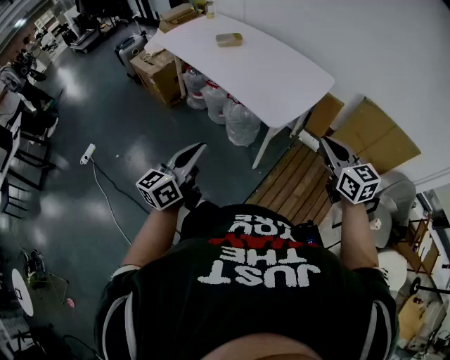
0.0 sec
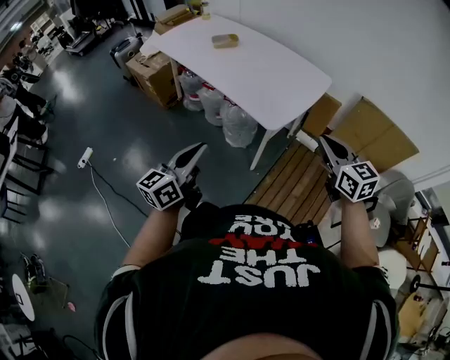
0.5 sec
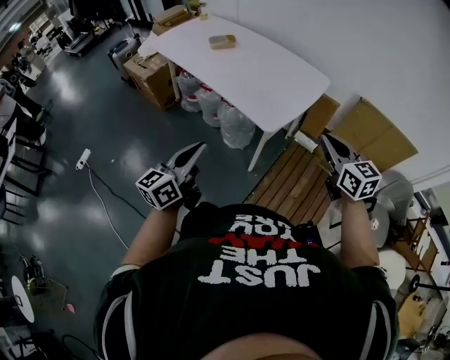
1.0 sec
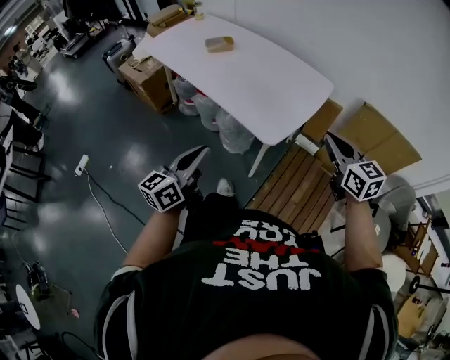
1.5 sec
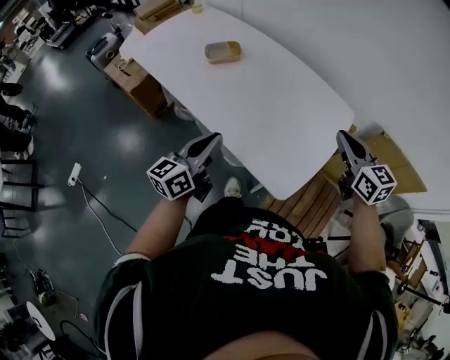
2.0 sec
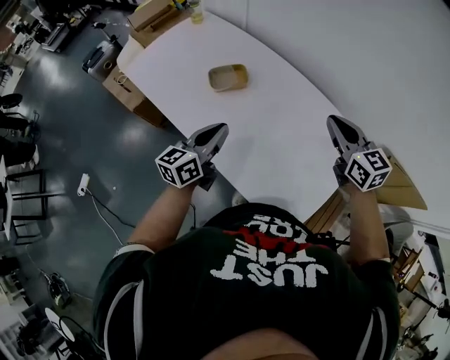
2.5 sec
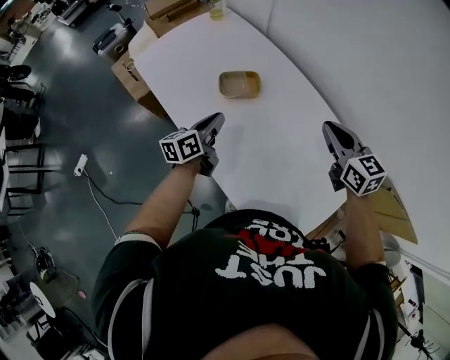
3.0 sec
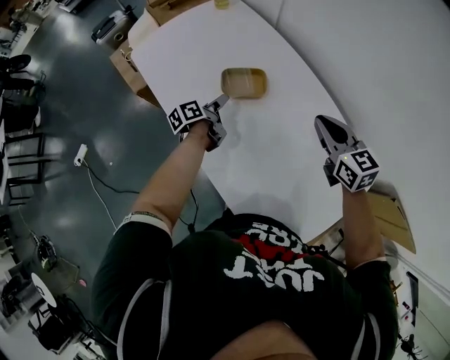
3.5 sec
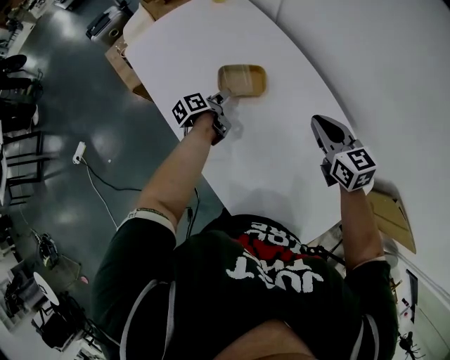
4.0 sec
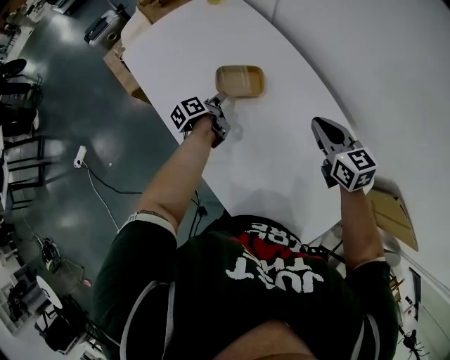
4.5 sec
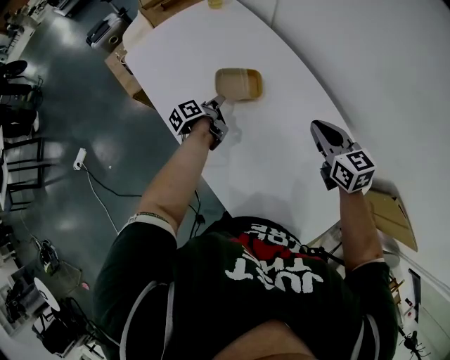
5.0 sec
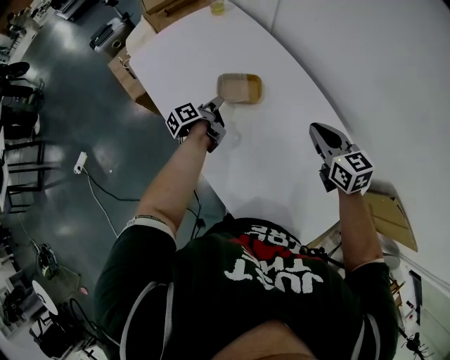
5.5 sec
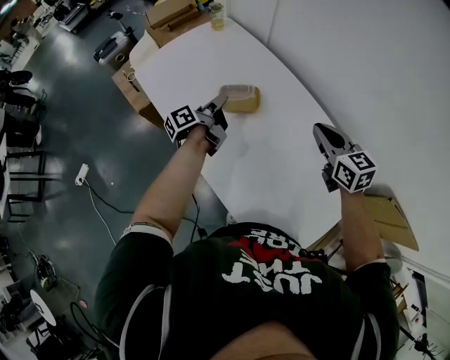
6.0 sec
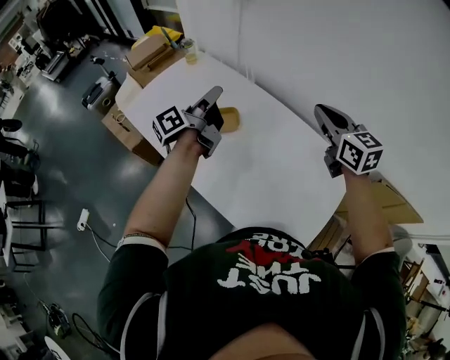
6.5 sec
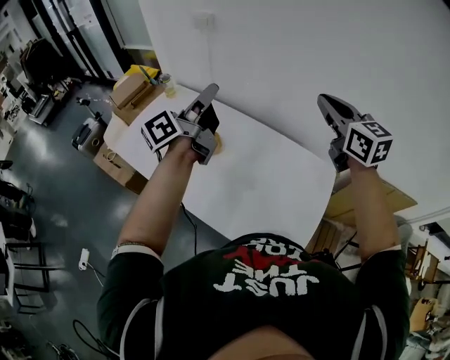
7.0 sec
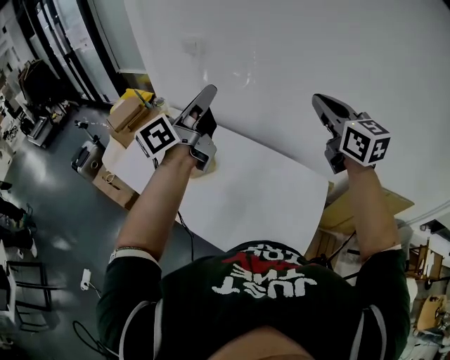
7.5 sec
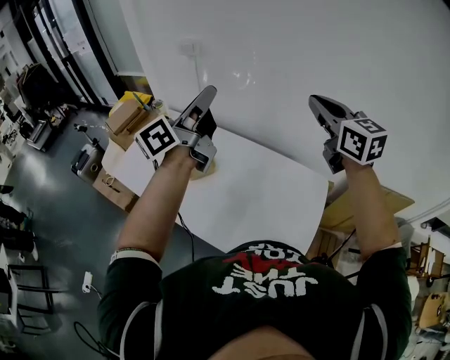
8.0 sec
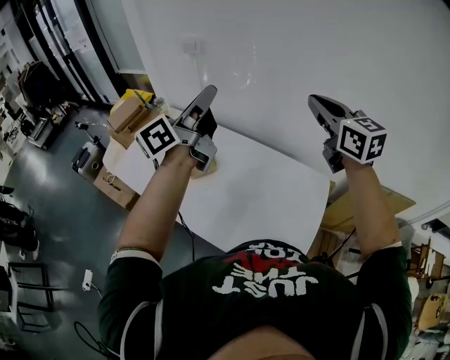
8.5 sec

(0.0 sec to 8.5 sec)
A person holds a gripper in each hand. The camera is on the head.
0.0 sec - 2.0 sec: Both grippers move forward, roughly 35 cm.
2.0 sec - 4.0 sec: The right gripper goes approximately 35 cm forward, and rotates about 20 degrees, while the left gripper goes some 50 cm forward and downward, rolls counterclockwise, seen from behind, by approximately 50 degrees, and opens its fingers.
4.0 sec - 6.5 sec: The right gripper is displaced upward by approximately 20 cm, and rotates some 20 degrees, while the left gripper shifts roughly 35 cm upward, points its fingers about 40 degrees further upward, and closes.
6.5 sec - 8.5 sec: Both grippers move upward and to the right, some 25 cm. The left gripper swivels approximately 30 degrees.

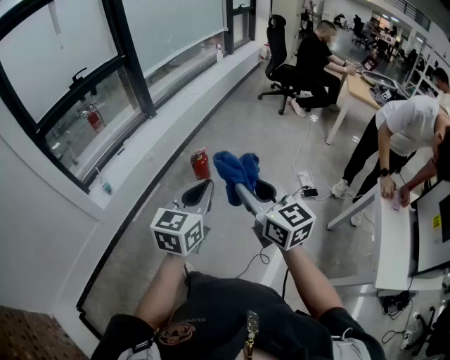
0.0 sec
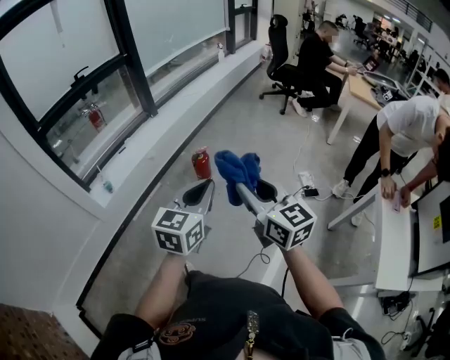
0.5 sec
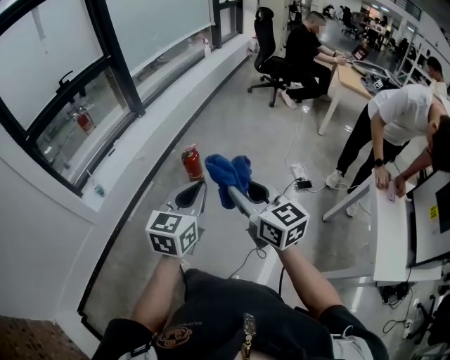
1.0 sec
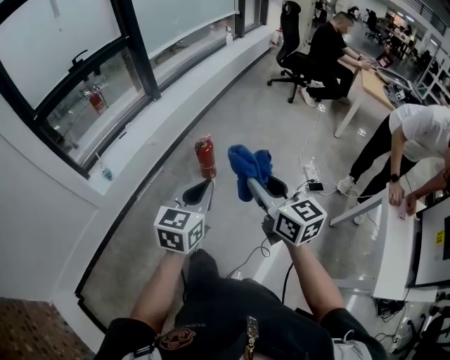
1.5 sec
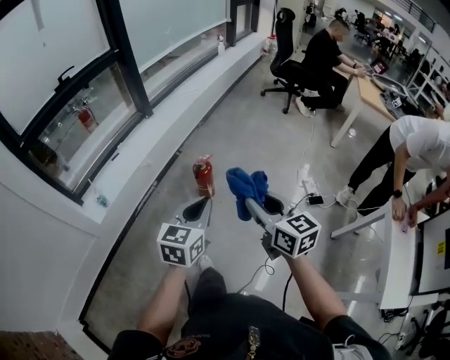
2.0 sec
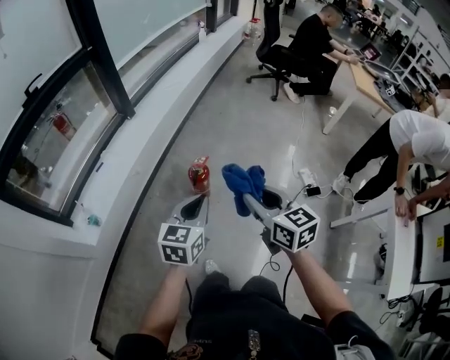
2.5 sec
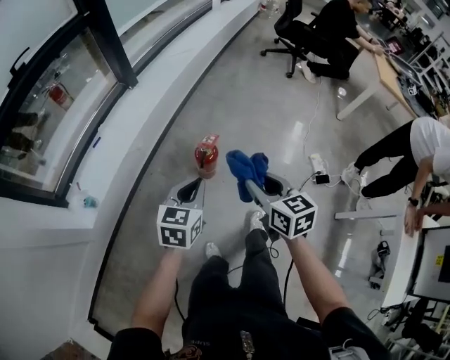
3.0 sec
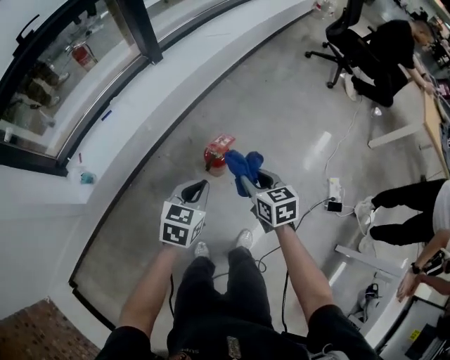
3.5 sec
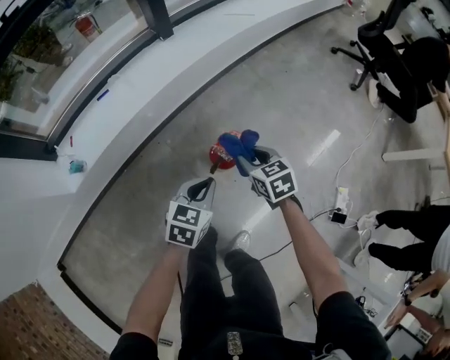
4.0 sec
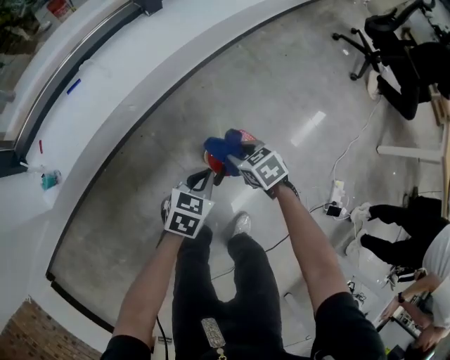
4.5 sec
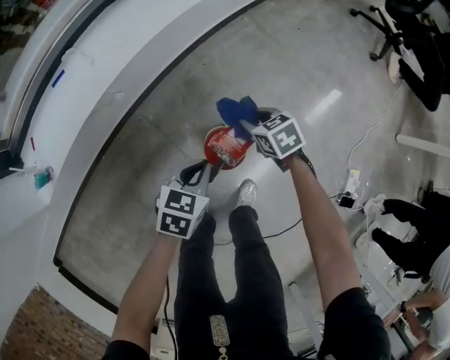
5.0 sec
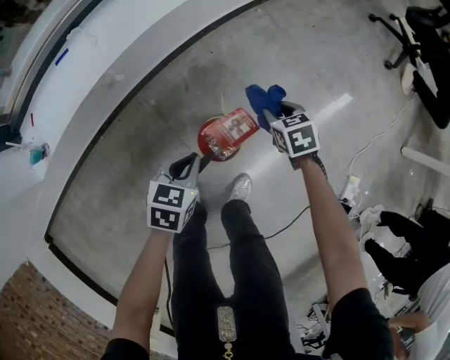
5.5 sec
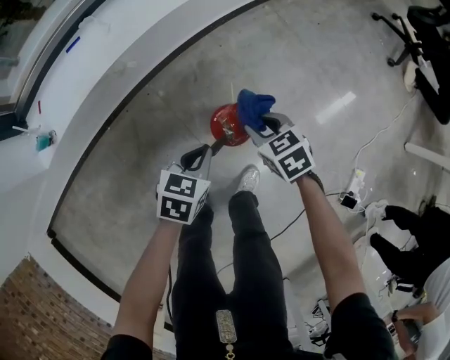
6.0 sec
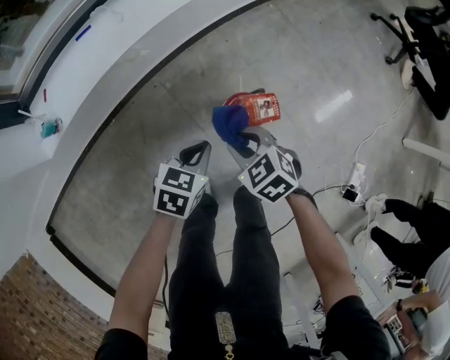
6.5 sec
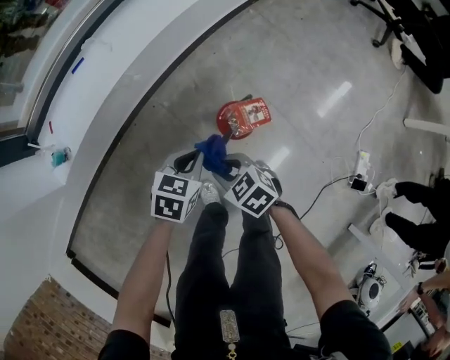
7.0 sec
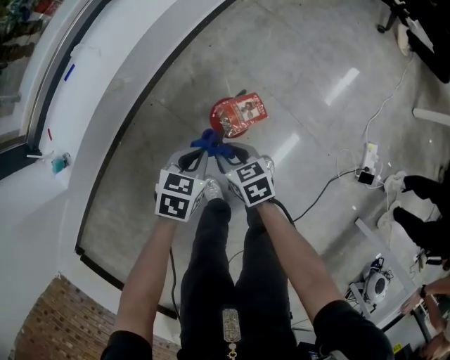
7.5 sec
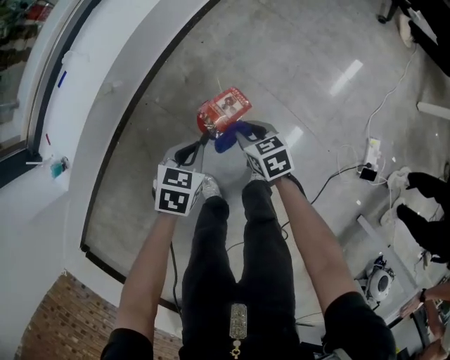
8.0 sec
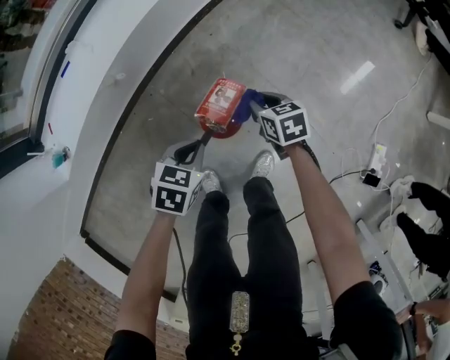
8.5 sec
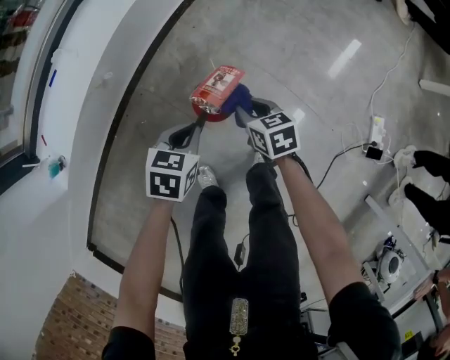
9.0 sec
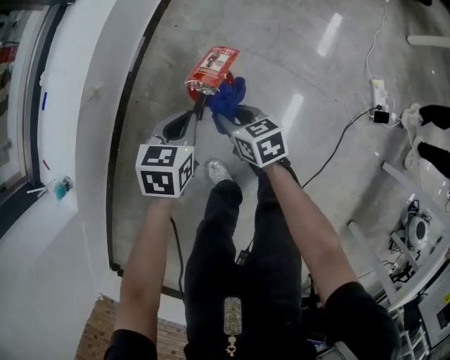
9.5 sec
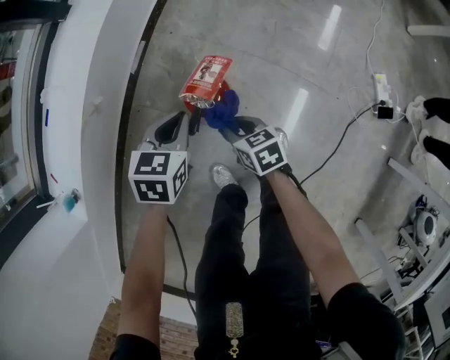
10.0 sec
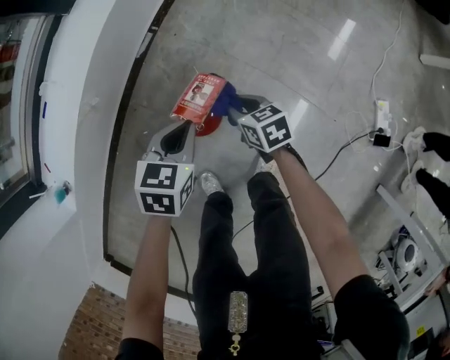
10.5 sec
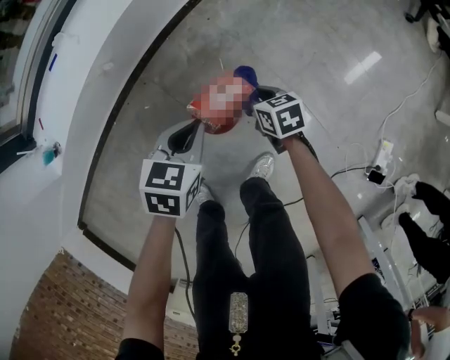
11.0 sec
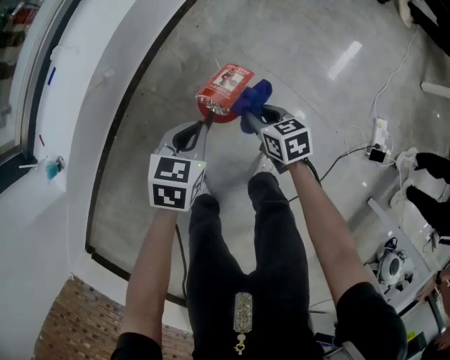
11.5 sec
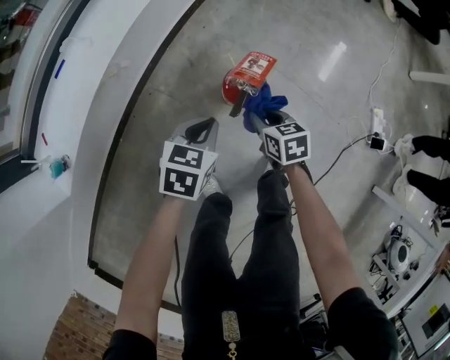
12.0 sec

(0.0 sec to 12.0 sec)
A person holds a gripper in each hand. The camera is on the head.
0.0 sec - 2.0 sec: The left gripper shifts some 15 cm forward, downward and to the left. Meanwhile the right gripper goes roughly 15 cm forward and downward.
2.0 sec - 4.0 sec: Both grippers move forward and downward, some 50 cm. The right gripper tilts its fingers roughly 30 degrees downward, while the left gripper changes its angle by approximately 20 degrees.
4.0 sec - 6.0 sec: The grippers both shift downward by approximately 15 cm.
6.0 sec - 8.0 sec: The right gripper goes to the left and returns, approximately 15 cm each way, and changes its angle by roughly 30 degrees.
8.0 sec - 10.0 sec: The right gripper goes approximately 5 cm backward.
10.0 sec - 12.0 sec: The left gripper is displaced to the left and backward by about 10 cm. Meanwhile the right gripper moves some 15 cm forward and comes back.

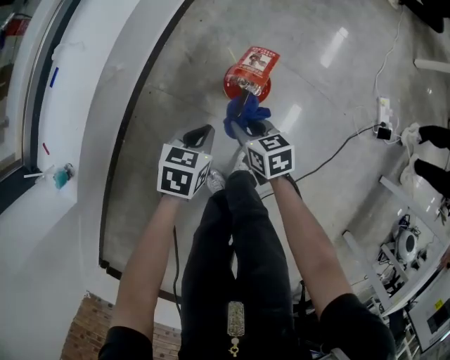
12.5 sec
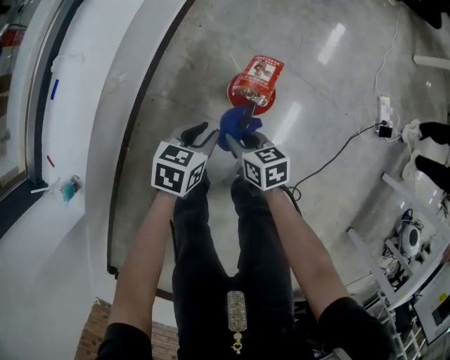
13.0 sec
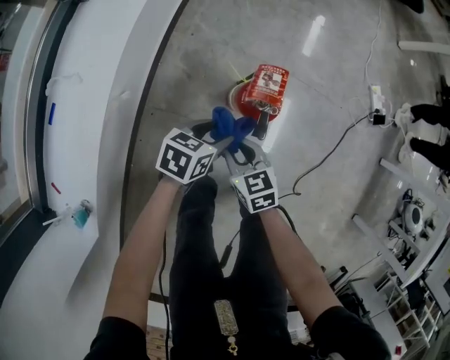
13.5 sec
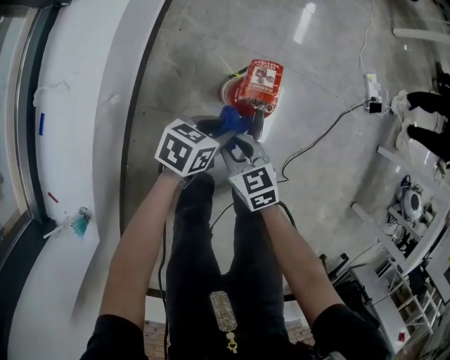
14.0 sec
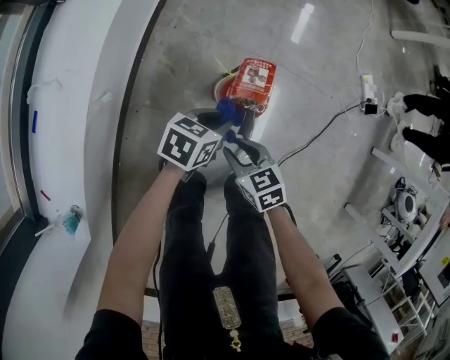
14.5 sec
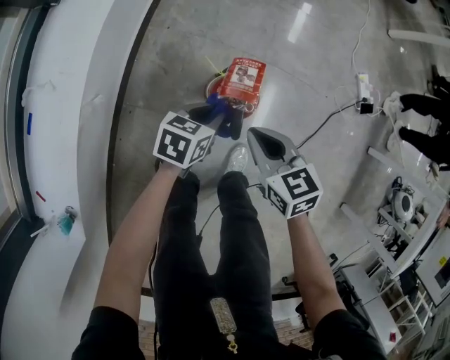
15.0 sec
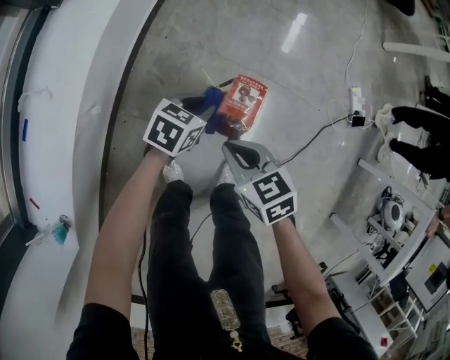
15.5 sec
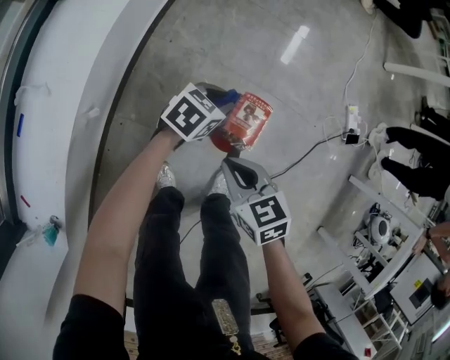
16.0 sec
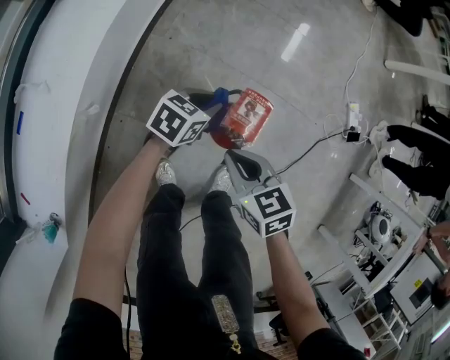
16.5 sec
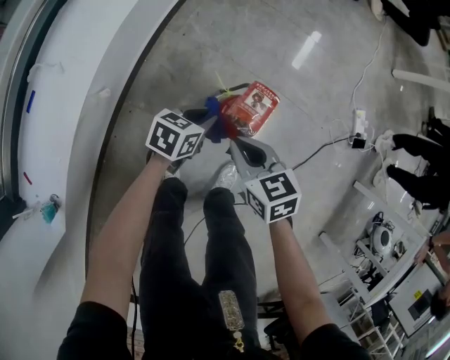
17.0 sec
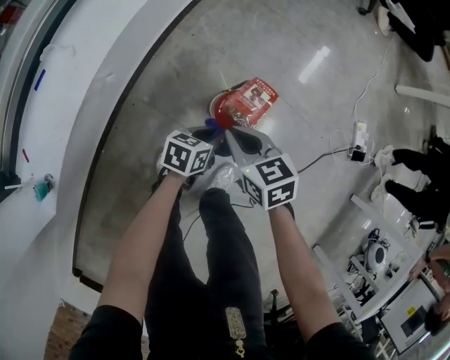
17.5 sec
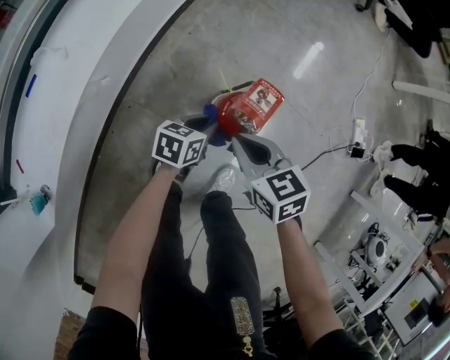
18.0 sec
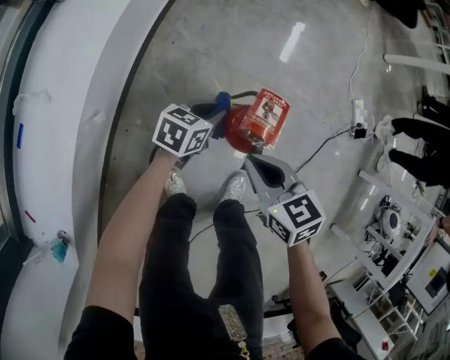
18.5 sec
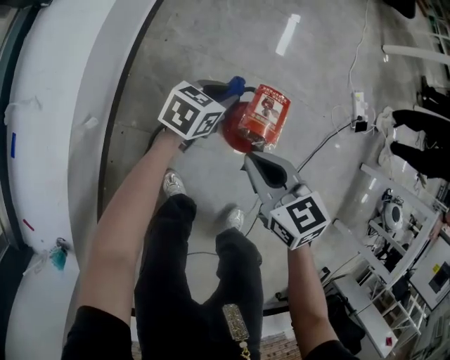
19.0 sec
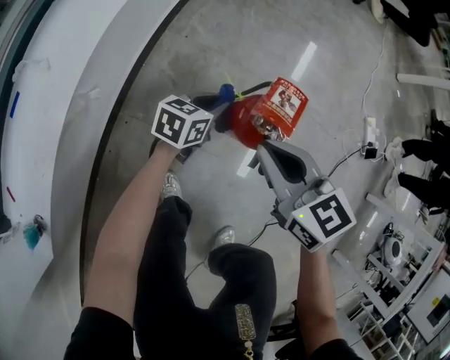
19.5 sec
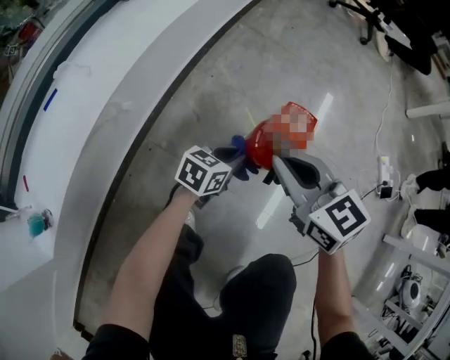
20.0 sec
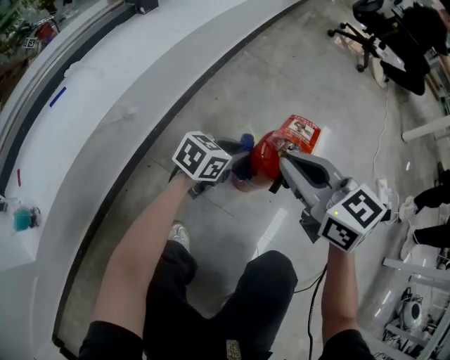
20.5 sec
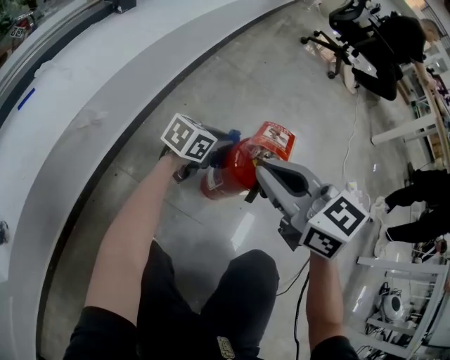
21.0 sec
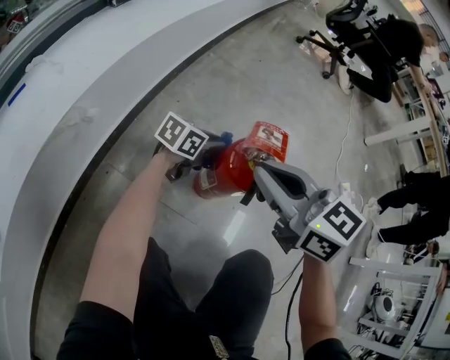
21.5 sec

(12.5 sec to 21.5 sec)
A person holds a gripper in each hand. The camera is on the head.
12.5 sec - 14.5 sec: The left gripper ends up some 10 cm from where it was, swivels approximately 30 degrees, and opens and closes again.
14.5 sec - 17.0 sec: The right gripper shifts approximately 10 cm forward and upward, and closes its fingers. Meanwhile the left gripper goes forward and returns, some 15 cm each way.
17.0 sec - 19.5 sec: The left gripper swings forward and backward, about 15 cm each way, with 2 reversals.
19.5 sec - 21.5 sec: The left gripper moves roughly 5 cm backward and comes back.
